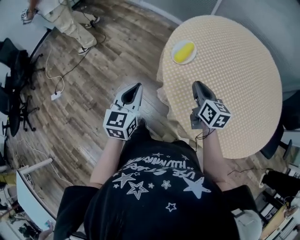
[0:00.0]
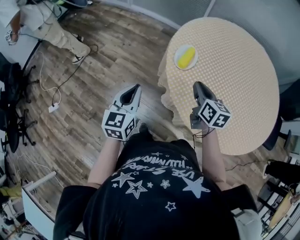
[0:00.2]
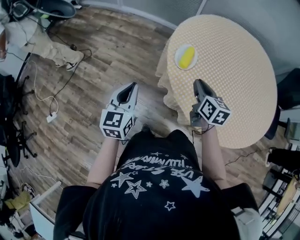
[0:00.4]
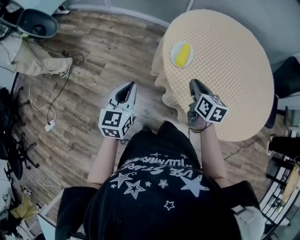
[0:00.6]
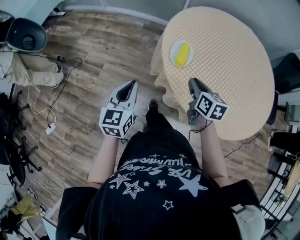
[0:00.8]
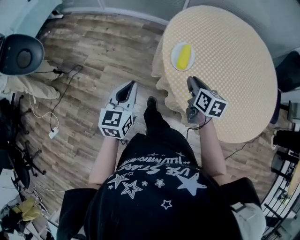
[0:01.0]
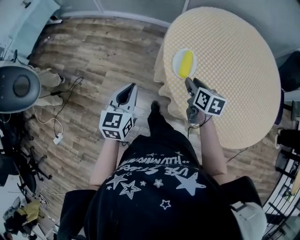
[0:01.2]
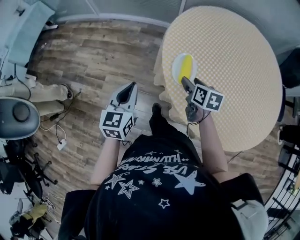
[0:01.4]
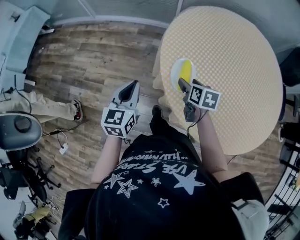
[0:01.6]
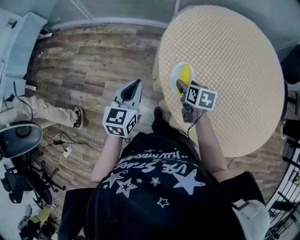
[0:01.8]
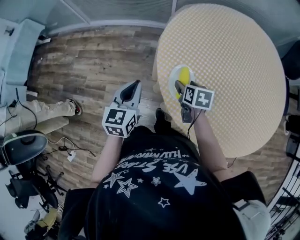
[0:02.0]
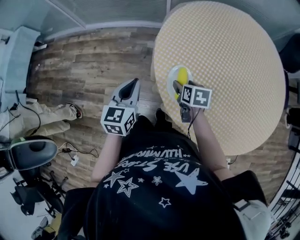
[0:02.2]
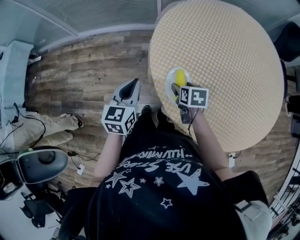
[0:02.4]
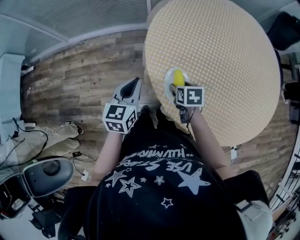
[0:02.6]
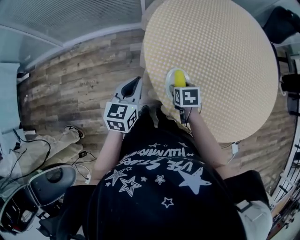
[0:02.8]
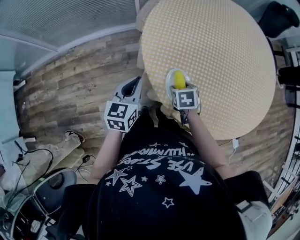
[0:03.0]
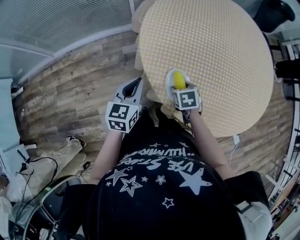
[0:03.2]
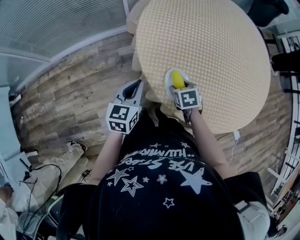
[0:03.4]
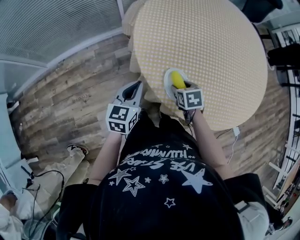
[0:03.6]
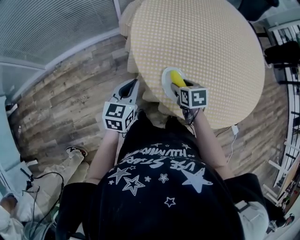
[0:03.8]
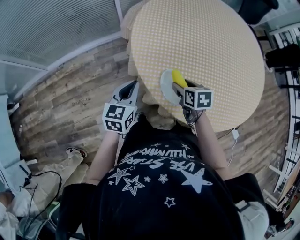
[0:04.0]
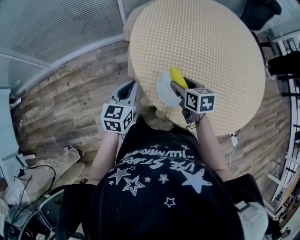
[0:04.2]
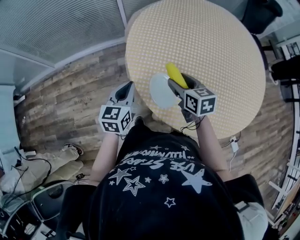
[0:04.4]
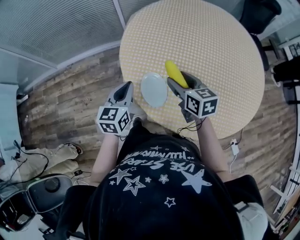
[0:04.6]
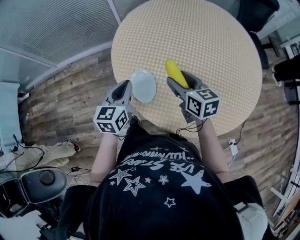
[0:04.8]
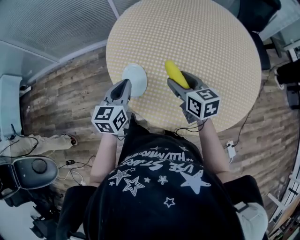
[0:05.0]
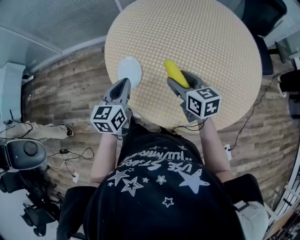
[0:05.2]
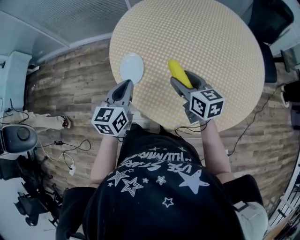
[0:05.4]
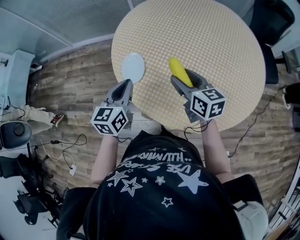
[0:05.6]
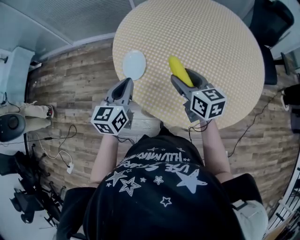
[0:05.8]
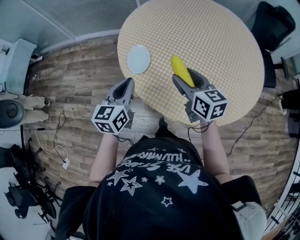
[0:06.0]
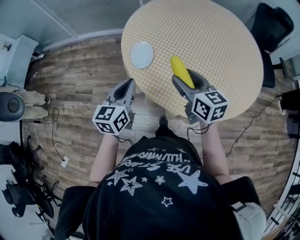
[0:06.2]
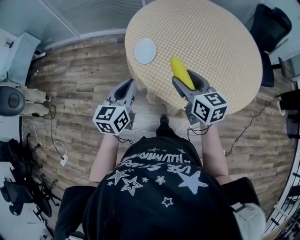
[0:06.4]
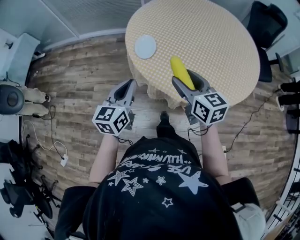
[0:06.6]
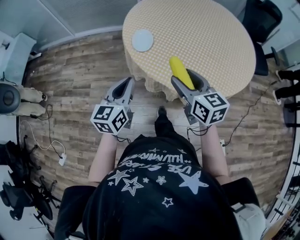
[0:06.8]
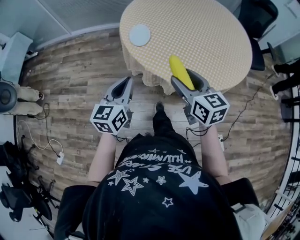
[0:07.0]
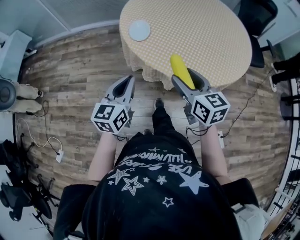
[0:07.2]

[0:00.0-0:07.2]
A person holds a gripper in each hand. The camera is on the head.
0:00.0 to 0:01.4: The left gripper moves forward and to the left, about 20 cm, and changes its angle by roughly 20 degrees; the right gripper shifts roughly 15 cm forward, to the left and downward, turns by approximately 30 degrees, and opens.
0:01.4 to 0:02.8: The right gripper heads downward and forward, covering approximately 10 cm, and changes its angle by about 30 degrees. Meanwhile the left gripper is displaced forward by roughly 20 cm, and turns by about 30 degrees.
0:02.8 to 0:04.4: The right gripper heads upward, covering about 15 cm, and turns by roughly 30 degrees.
0:04.4 to 0:05.8: The left gripper shifts roughly 25 cm backward and to the right, while the right gripper moves to the right and backward, approximately 20 cm, and turns by about 20 degrees.
0:05.8 to 0:07.2: Both grippers move backward, about 25 cm.

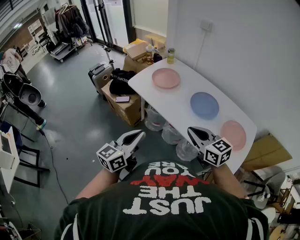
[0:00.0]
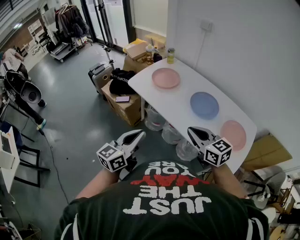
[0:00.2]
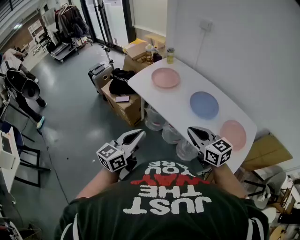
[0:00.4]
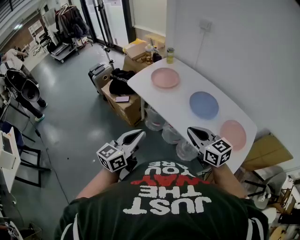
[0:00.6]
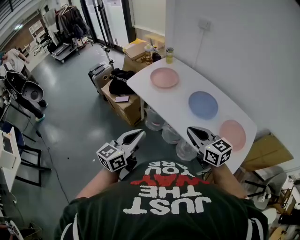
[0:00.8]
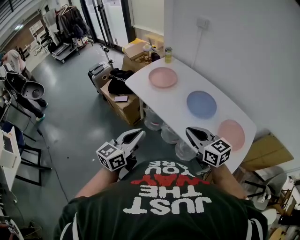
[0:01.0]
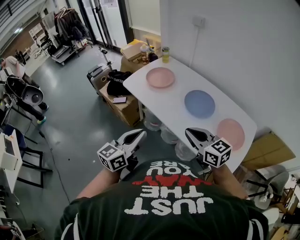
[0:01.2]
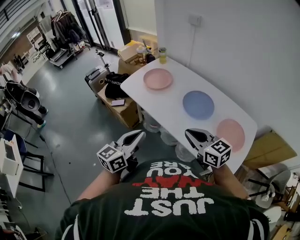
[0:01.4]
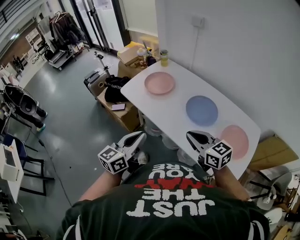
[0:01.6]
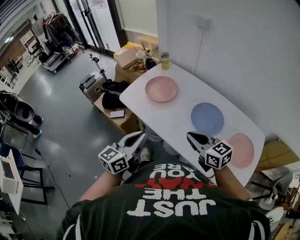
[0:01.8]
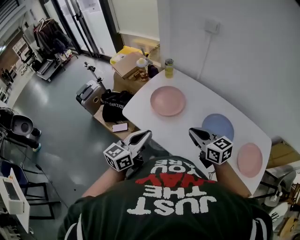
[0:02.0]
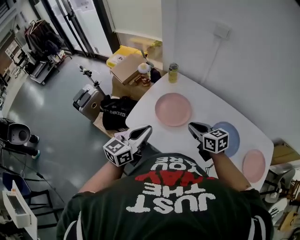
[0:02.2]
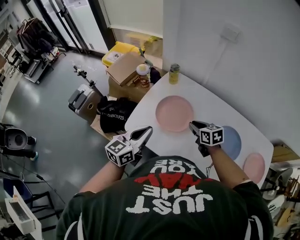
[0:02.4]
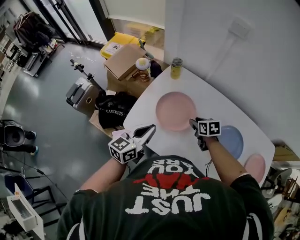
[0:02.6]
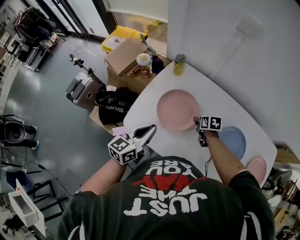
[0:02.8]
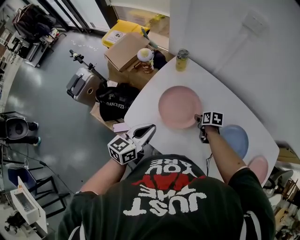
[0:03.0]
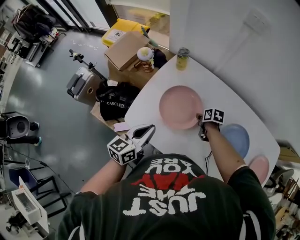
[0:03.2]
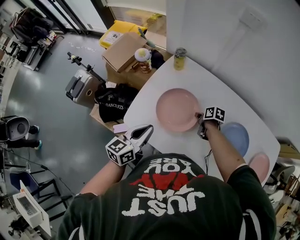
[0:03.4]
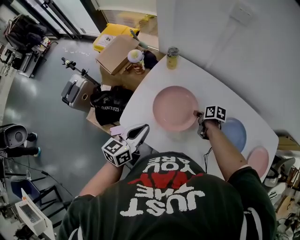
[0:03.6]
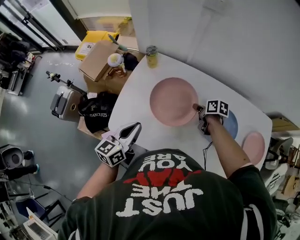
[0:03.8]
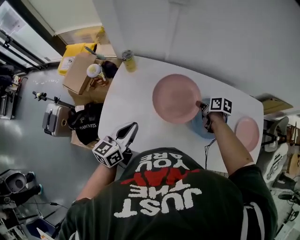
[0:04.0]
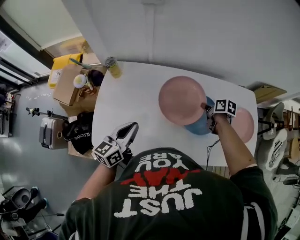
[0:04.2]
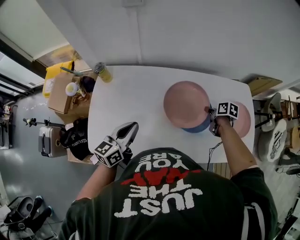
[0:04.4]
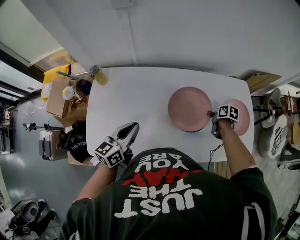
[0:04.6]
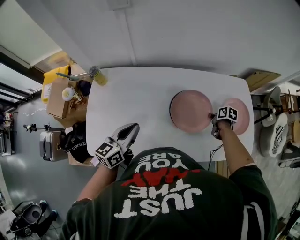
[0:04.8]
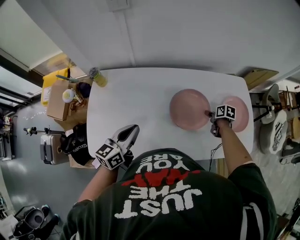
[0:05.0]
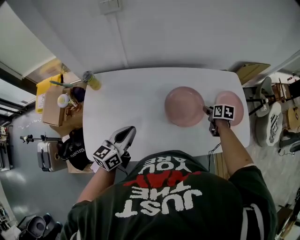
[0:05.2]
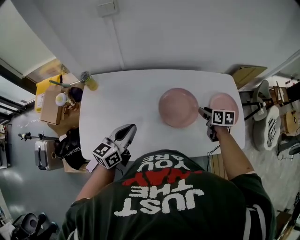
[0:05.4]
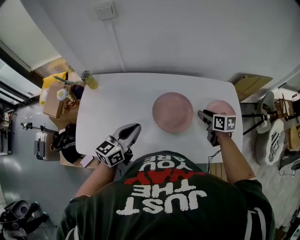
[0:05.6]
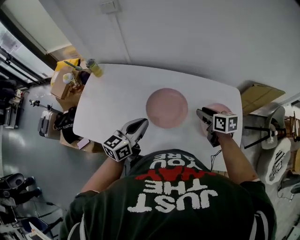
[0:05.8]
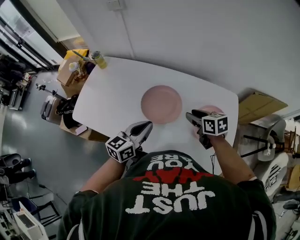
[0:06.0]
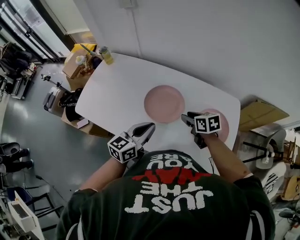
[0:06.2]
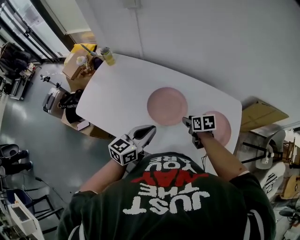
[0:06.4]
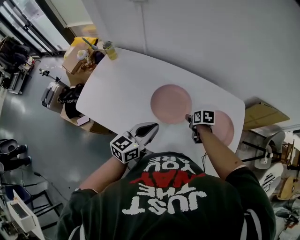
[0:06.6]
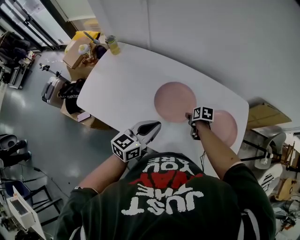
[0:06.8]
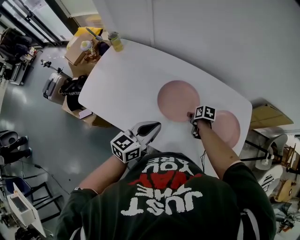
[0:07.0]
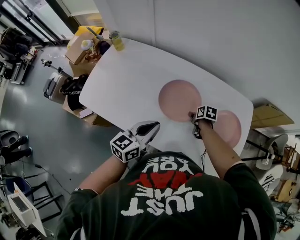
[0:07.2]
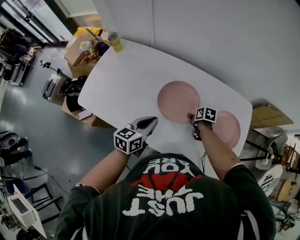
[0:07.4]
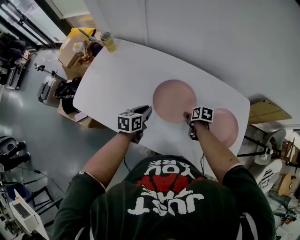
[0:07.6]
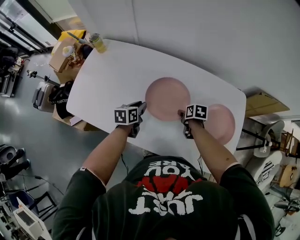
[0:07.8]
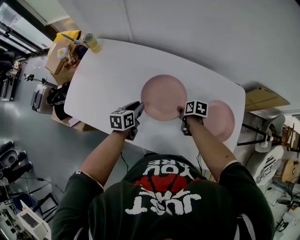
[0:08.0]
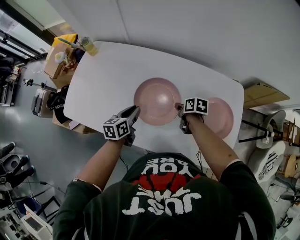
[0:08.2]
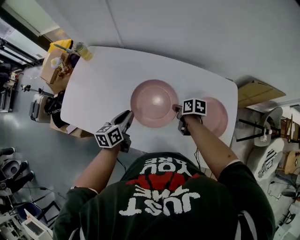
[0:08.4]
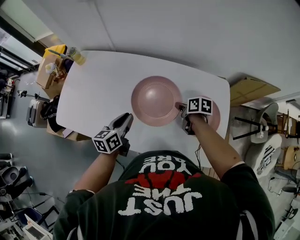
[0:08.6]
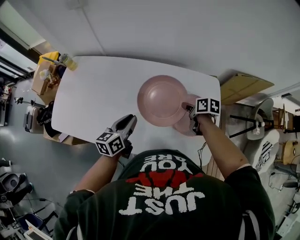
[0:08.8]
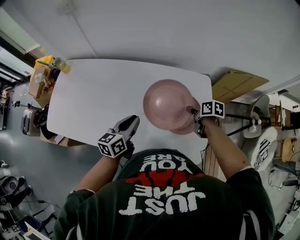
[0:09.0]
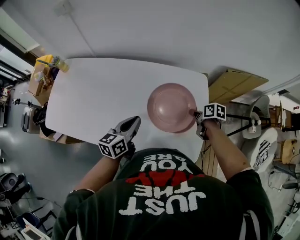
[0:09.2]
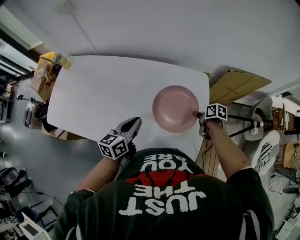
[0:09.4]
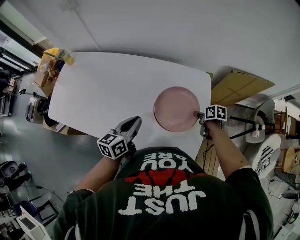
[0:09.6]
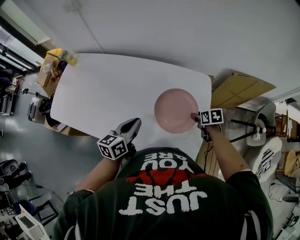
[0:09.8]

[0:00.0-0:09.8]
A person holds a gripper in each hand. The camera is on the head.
0:00.0 to 0:01.4: Both grippers move to the right, approximately 5 cm.
0:01.4 to 0:02.8: The two grippers travel together, forward, about 50 cm. The right gripper travels downward by about 30 cm, points its fingers approximately 40 degrees further downward, and opens its fingers.
0:02.8 to 0:04.2: The right gripper ends up some 25 cm from where it was, swivels approximately 40 degrees, and closes its fingers. The left gripper moves roughly 10 cm.
0:04.2 to 0:05.6: The right gripper moves to the right, backward and upward, some 20 cm, turns by approximately 20 degrees, and opens up. The left gripper travels to the right by about 20 cm.
0:05.6 to 0:07.0: The left gripper moves to the right and backward, some 15 cm. Meanwhile the right gripper travels downward by some 15 cm, and rotates roughly 30 degrees.
0:07.0 to 0:08.4: The right gripper closes up; the left gripper is displaced downward and forward by roughly 15 cm, and rotates roughly 30 degrees.
0:08.4 to 0:09.8: The left gripper goes roughly 25 cm to the right and backward; the right gripper travels to the right by approximately 30 cm, and opens.

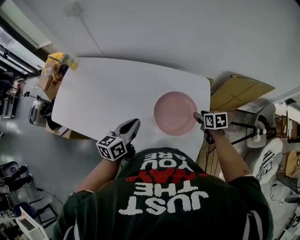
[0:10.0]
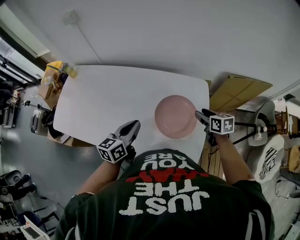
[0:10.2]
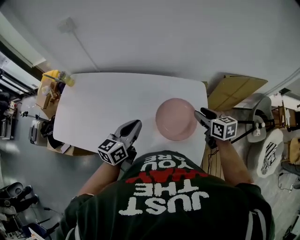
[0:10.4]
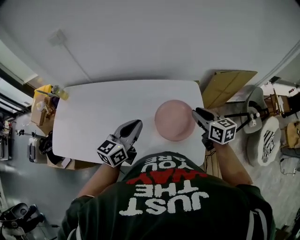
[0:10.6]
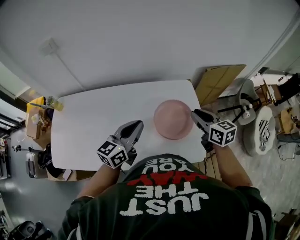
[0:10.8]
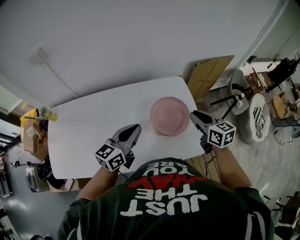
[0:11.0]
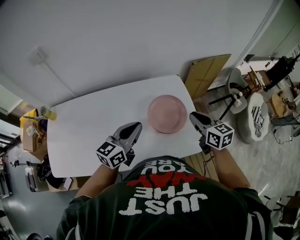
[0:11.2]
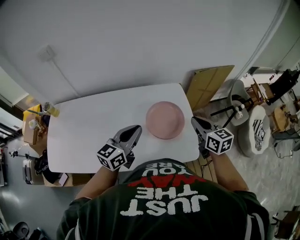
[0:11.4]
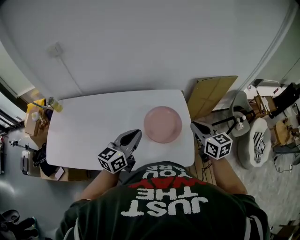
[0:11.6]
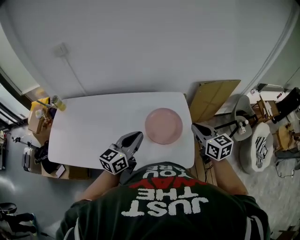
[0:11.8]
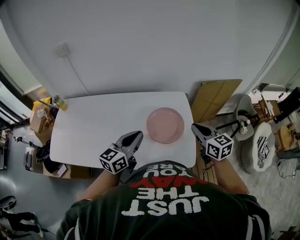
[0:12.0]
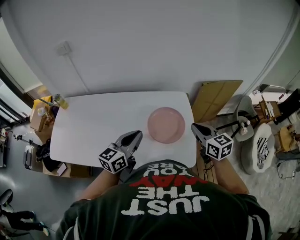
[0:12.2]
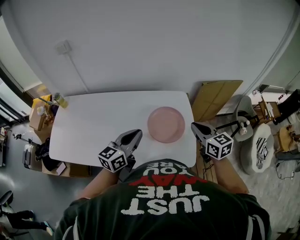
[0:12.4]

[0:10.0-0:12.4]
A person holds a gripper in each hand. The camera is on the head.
0:10.0 to 0:11.2: The right gripper moves upward, some 20 cm, rotates about 40 degrees, and closes. Meanwhile the left gripper is displaced upward by approximately 10 cm, and rotates about 40 degrees.
0:11.2 to 0:12.4: The left gripper changes place by some 5 cm.

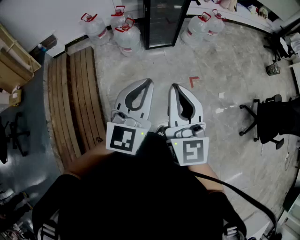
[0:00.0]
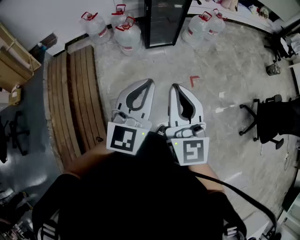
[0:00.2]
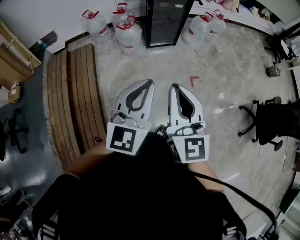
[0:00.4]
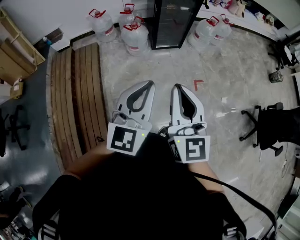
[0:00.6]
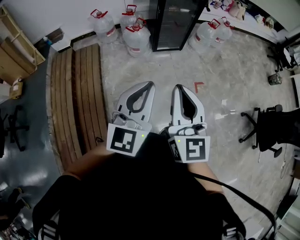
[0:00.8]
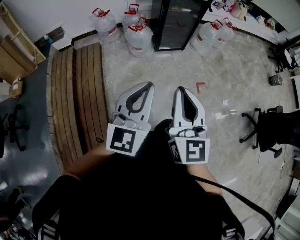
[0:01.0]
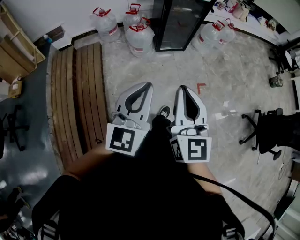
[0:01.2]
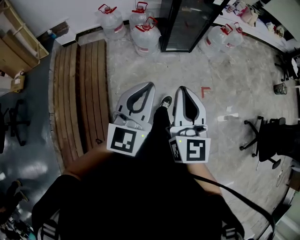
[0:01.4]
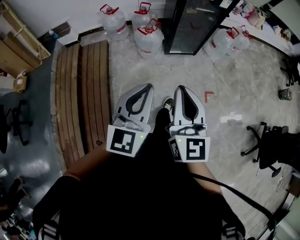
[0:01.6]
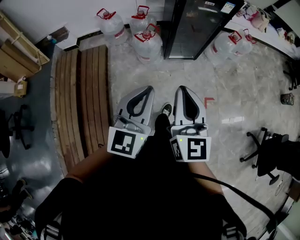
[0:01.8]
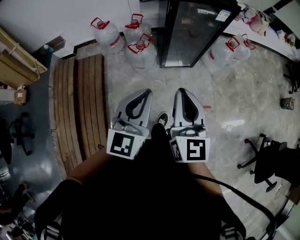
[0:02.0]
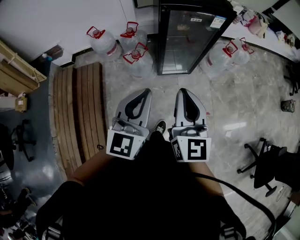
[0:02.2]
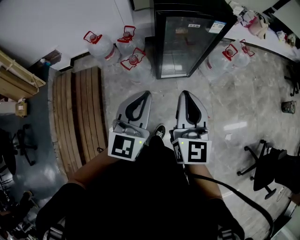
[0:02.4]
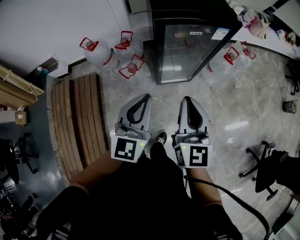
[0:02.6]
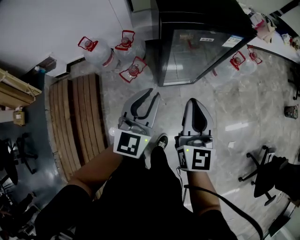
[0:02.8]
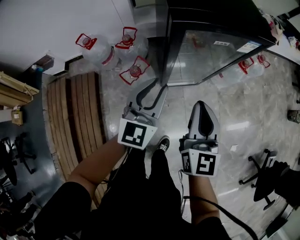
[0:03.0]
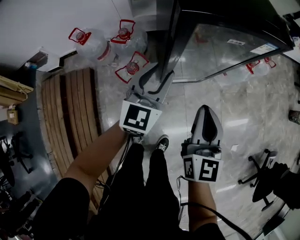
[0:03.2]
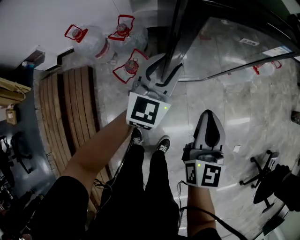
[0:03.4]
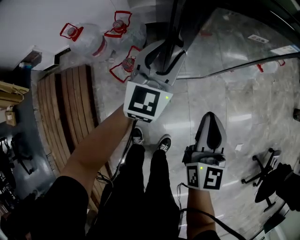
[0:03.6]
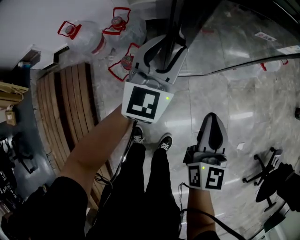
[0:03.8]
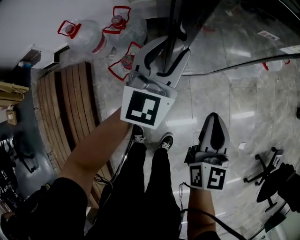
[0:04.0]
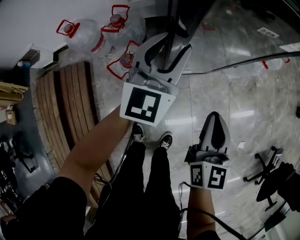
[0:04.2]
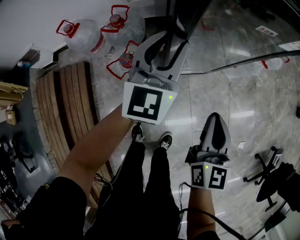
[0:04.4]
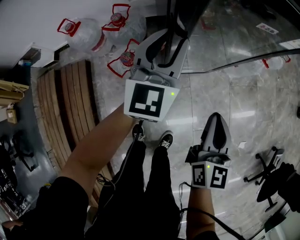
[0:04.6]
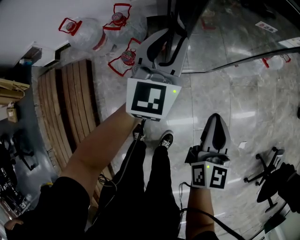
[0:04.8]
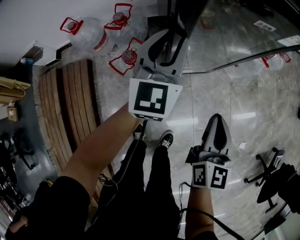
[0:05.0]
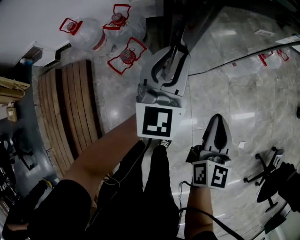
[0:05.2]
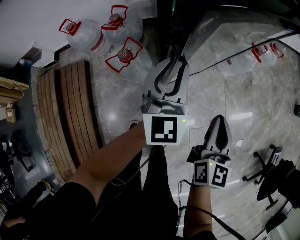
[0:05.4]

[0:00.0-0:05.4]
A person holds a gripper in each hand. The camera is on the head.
0:00.0 to 0:01.4: Both grippers move to the left and forward, roughly 15 cm.
0:01.4 to 0:02.8: Both grippers are carried forward, roughly 50 cm.
0:02.8 to 0:04.0: The left gripper travels forward and downward by about 30 cm, and opens; the right gripper travels downward by about 25 cm.
0:04.0 to 0:05.4: The right gripper heads to the right and backward, covering roughly 10 cm; the left gripper moves backward and to the right, about 10 cm.
